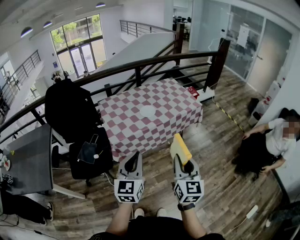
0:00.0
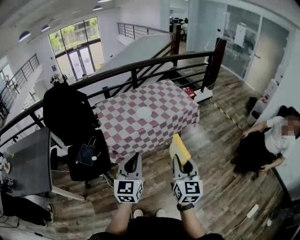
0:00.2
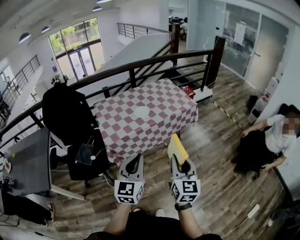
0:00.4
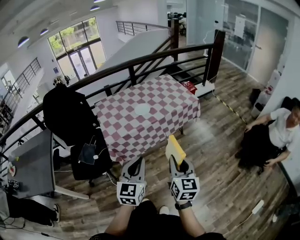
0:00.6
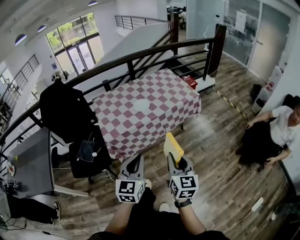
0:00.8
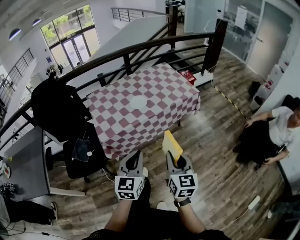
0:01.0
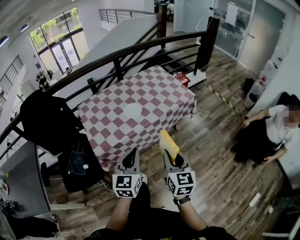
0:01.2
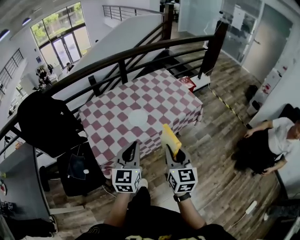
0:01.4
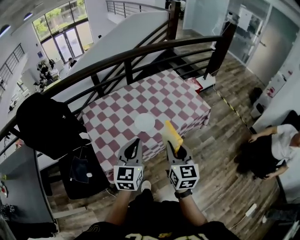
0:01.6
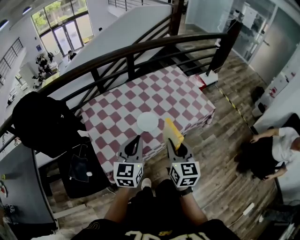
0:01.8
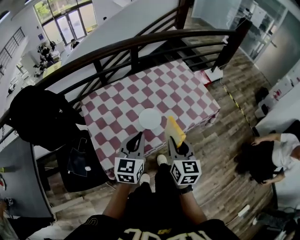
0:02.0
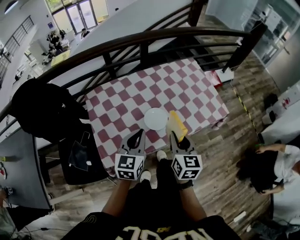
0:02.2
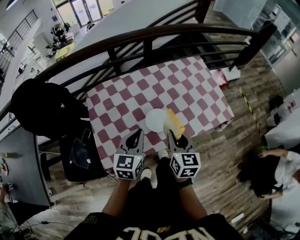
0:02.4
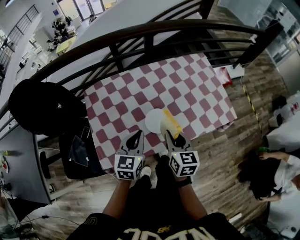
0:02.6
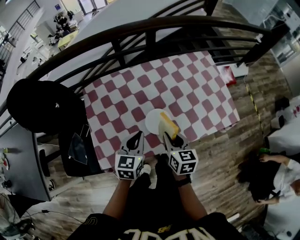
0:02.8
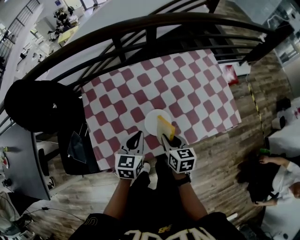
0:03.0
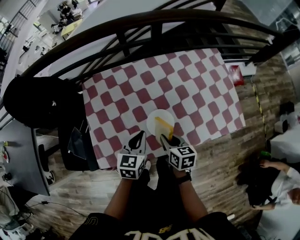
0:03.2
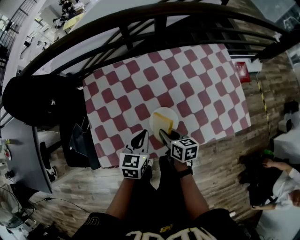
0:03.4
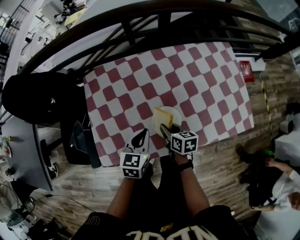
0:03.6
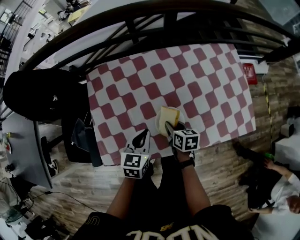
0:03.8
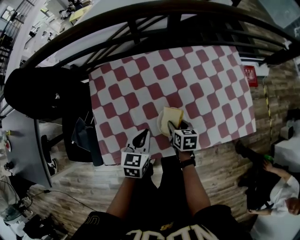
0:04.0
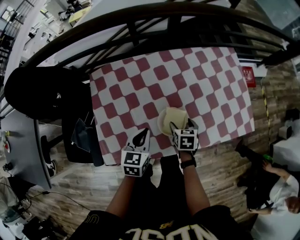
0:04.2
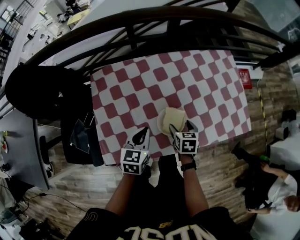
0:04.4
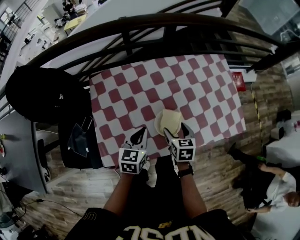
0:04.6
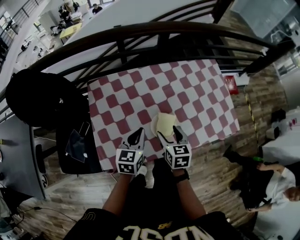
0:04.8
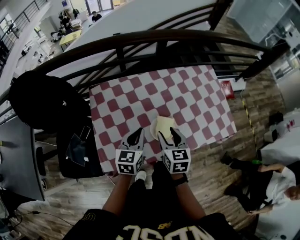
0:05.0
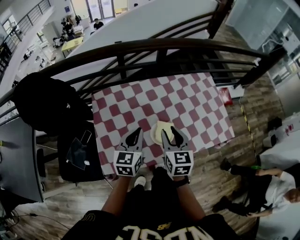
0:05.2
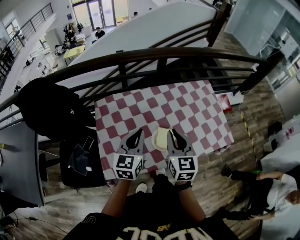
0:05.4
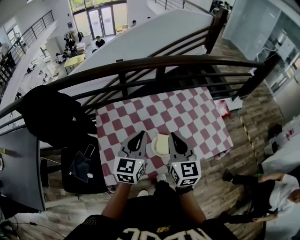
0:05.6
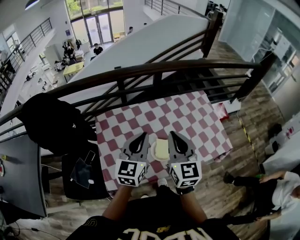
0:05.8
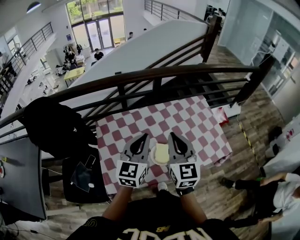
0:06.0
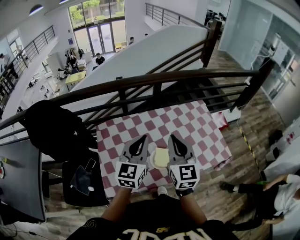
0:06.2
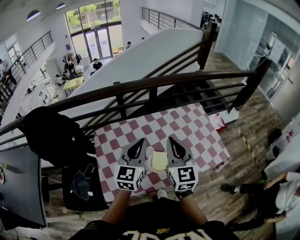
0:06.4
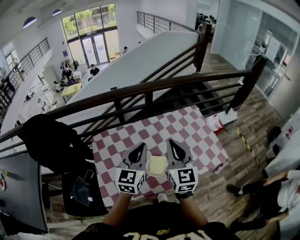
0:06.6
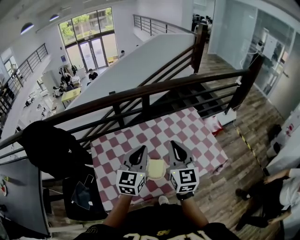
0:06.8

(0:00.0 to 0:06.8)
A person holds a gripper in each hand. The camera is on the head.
0:00.0 - 0:01.4: The two grippers go some 25 cm forward.
0:01.4 - 0:02.8: The two grippers go some 30 cm forward and downward. The right gripper turns by approximately 30 degrees; the left gripper swivels roughly 20 degrees.
0:02.8 - 0:04.0: The right gripper shifts about 15 cm downward and forward, and rotates roughly 20 degrees; the left gripper heads downward, covering some 5 cm.
0:04.0 - 0:05.4: The left gripper moves upward, roughly 20 cm, and changes its angle by some 20 degrees. Meanwhile the right gripper goes some 30 cm upward, points its fingers some 30 degrees further upward, and opens, then closes once more.
0:05.4 - 0:06.8: The left gripper is displaced to the right and upward by roughly 10 cm. Meanwhile the right gripper goes some 10 cm upward and to the right.

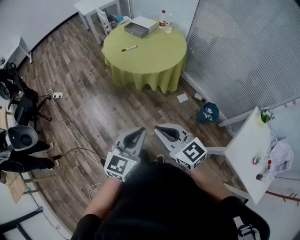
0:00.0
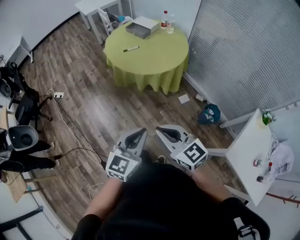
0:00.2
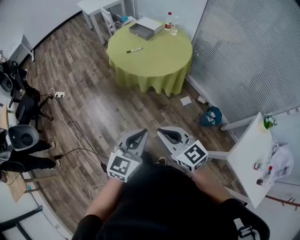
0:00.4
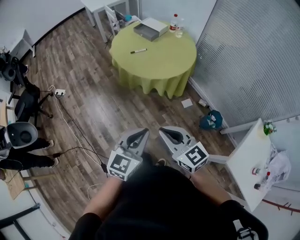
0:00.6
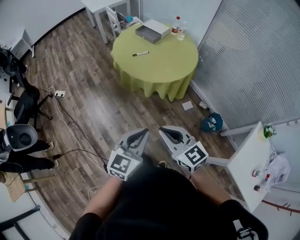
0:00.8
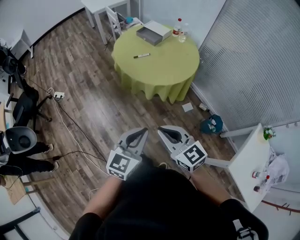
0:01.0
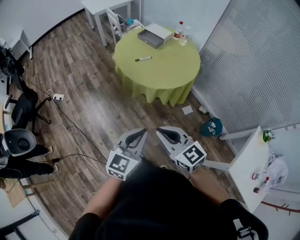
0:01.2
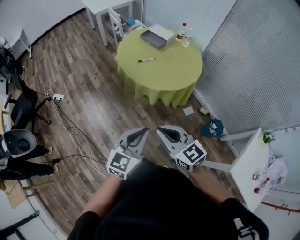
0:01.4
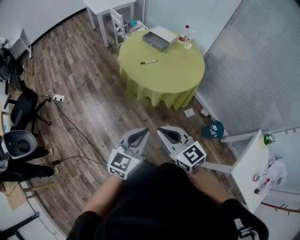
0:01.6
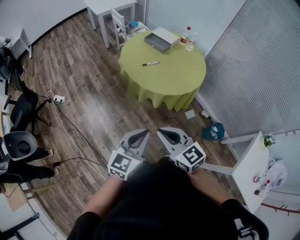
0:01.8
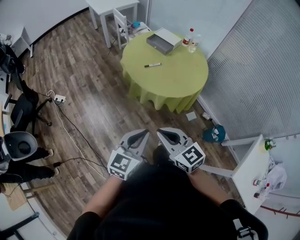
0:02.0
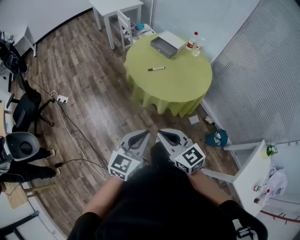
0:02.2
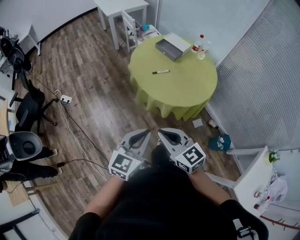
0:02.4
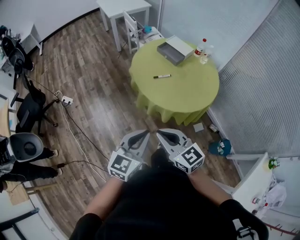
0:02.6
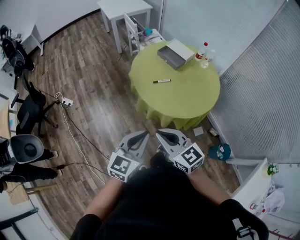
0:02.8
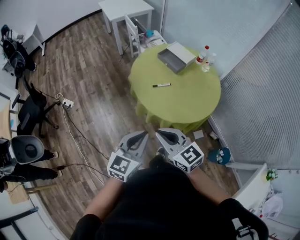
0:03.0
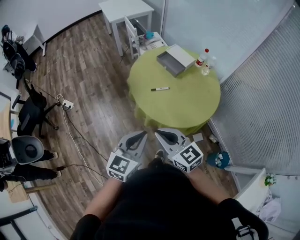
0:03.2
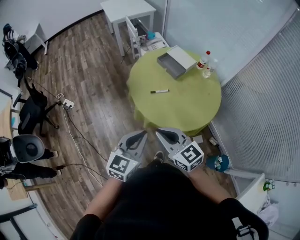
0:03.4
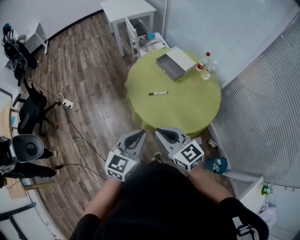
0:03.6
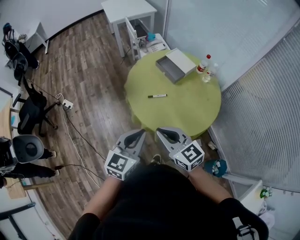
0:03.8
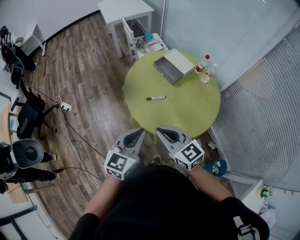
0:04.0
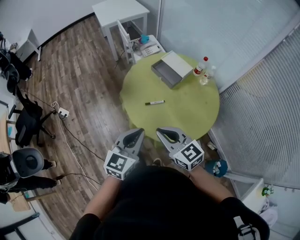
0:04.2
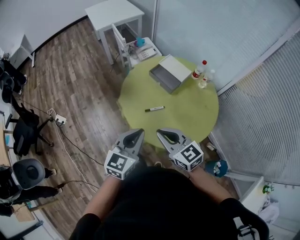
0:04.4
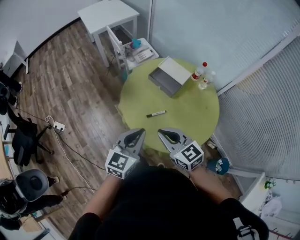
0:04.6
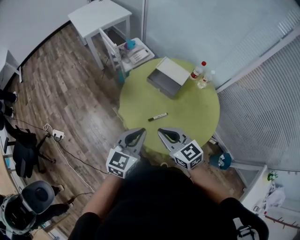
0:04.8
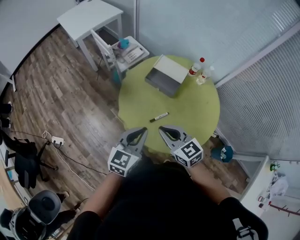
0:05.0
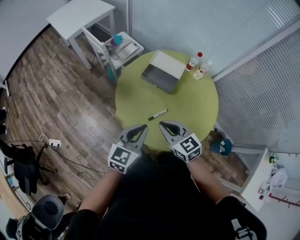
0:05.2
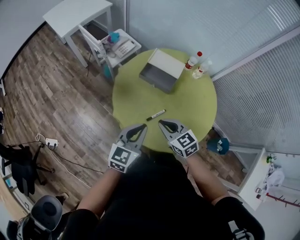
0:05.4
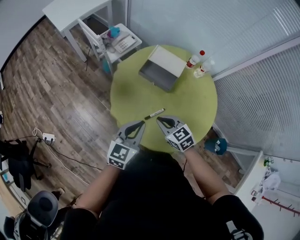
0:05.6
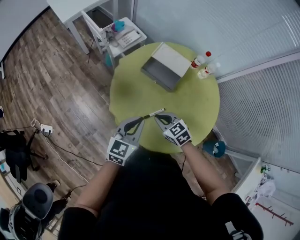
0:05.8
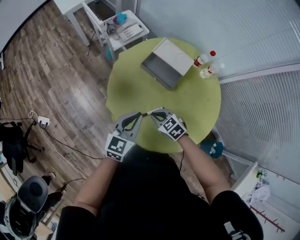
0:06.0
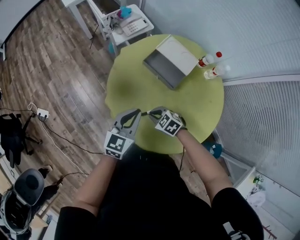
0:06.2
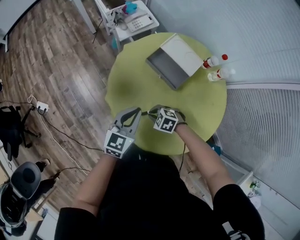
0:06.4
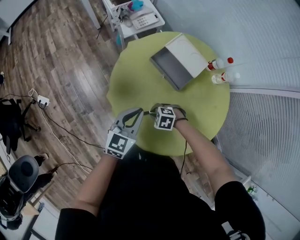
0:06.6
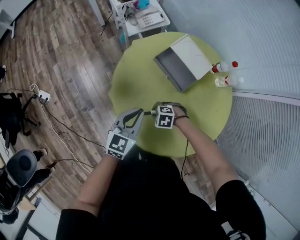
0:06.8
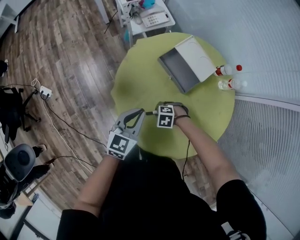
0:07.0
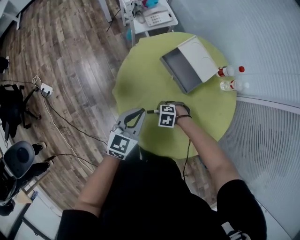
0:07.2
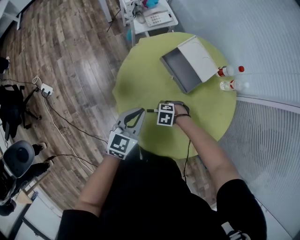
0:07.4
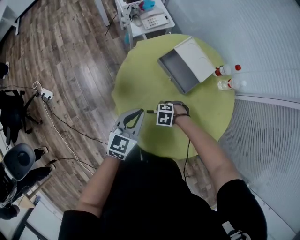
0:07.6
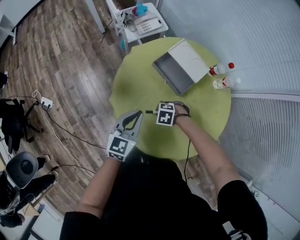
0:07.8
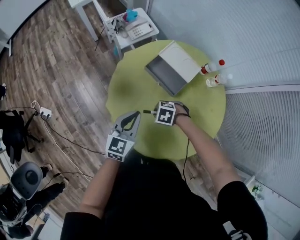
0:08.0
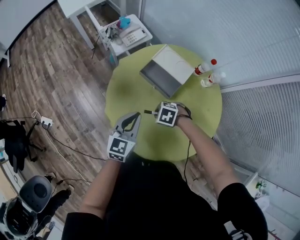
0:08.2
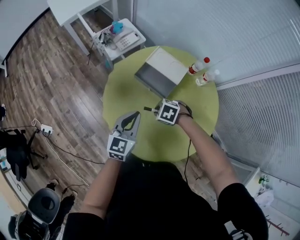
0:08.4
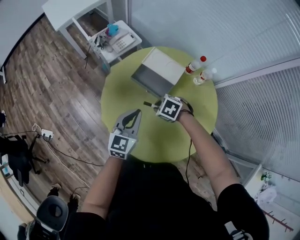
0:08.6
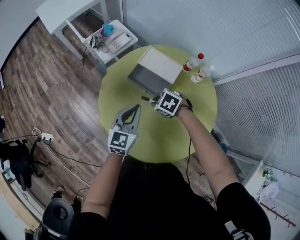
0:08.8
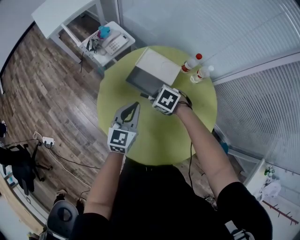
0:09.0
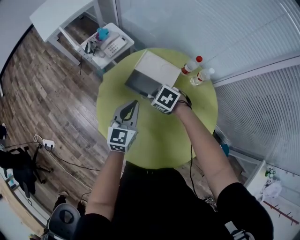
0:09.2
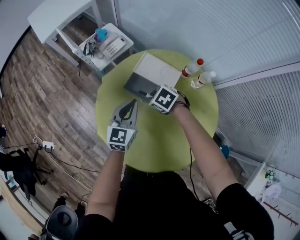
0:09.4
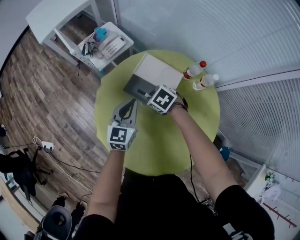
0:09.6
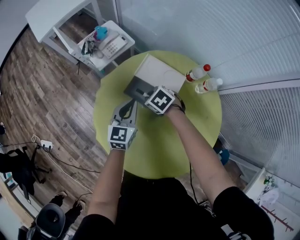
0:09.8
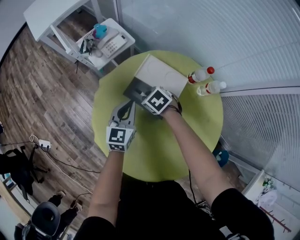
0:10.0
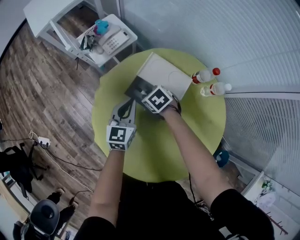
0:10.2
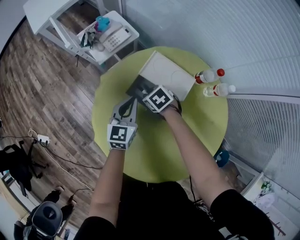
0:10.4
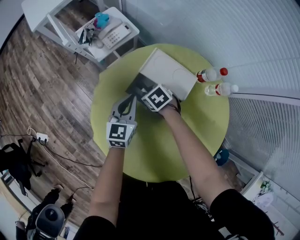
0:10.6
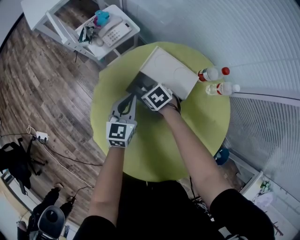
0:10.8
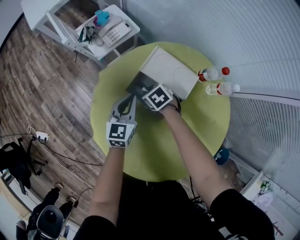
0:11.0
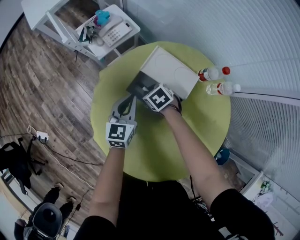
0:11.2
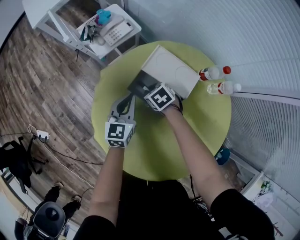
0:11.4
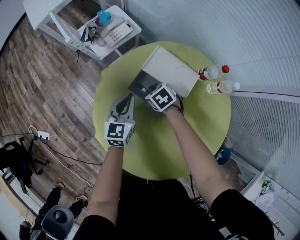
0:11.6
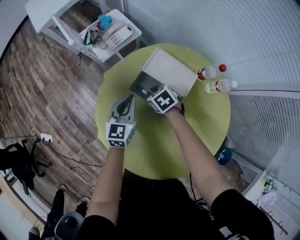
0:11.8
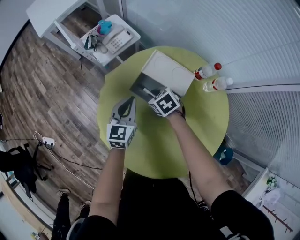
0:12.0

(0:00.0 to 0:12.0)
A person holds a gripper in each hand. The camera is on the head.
0:00.0 - 0:01.6: Both grippers travel together forward and to the left, roughly 20 cm.
0:01.6 - 0:03.0: The grippers both shift forward by about 20 cm.
0:03.0 - 0:04.4: The two grippers go approximately 20 cm forward.
0:04.4 - 0:06.0: The left gripper moves forward and downward, approximately 25 cm, while the right gripper is displaced downward and forward by about 35 cm, and tips its fingers downward by approximately 30 degrees.
0:06.0 - 0:07.6: The right gripper shifts some 15 cm downward, and changes its angle by some 50 degrees. The left gripper goes some 5 cm downward.
0:07.6 - 0:09.0: The left gripper moves some 15 cm, while the right gripper changes place by roughly 25 cm, and swivels roughly 40 degrees.
0:09.0 - 0:10.4: The left gripper is displaced forward and downward by about 15 cm; the right gripper moves downward and forward, about 20 cm.
0:10.4 - 0:12.0: There are only small adjustments of the grippers.

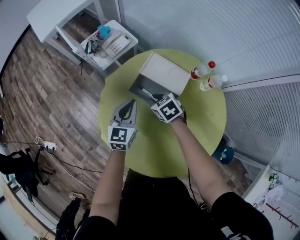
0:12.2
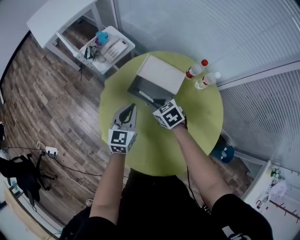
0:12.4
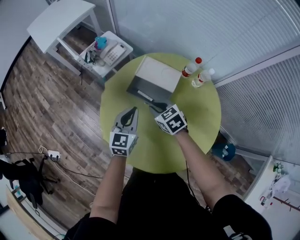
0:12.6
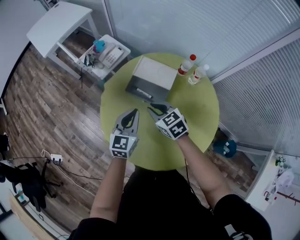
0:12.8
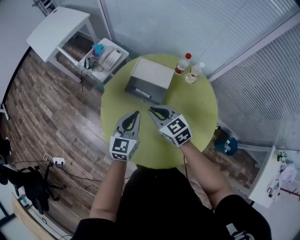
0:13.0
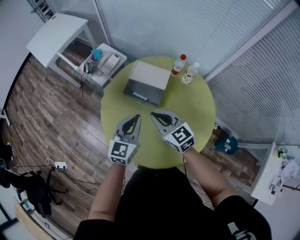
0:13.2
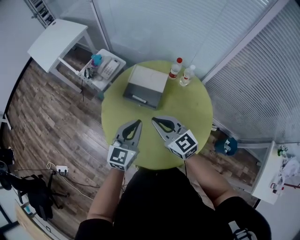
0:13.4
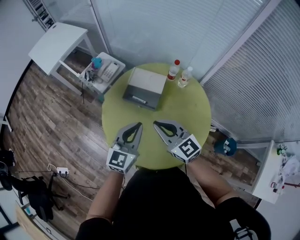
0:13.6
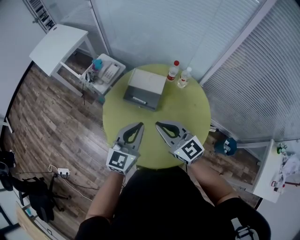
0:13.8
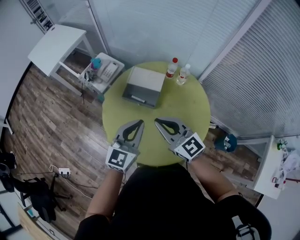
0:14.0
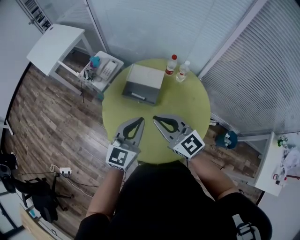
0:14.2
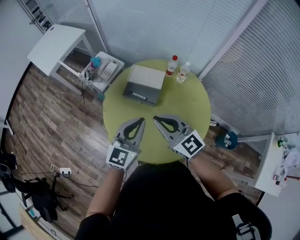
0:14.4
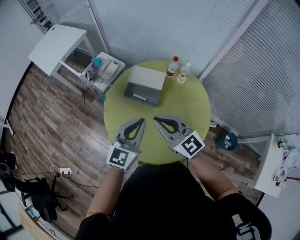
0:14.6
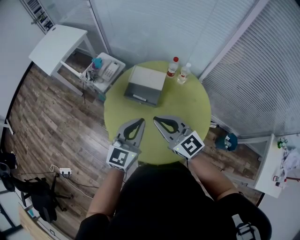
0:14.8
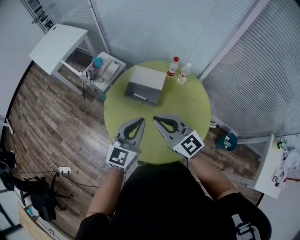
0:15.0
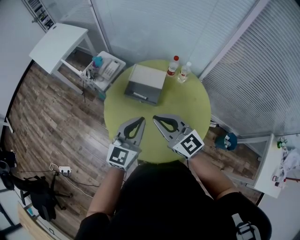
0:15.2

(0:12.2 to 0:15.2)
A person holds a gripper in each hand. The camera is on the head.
0:12.2 - 0:13.8: Both grippers move upward and backward, approximately 30 cm. The right gripper tips its fingers upward by approximately 50 degrees; the left gripper turns by approximately 30 degrees.
0:13.8 - 0:15.2: The grippers stay close to where they were, moving slightly.

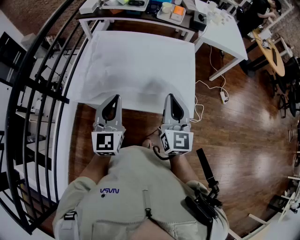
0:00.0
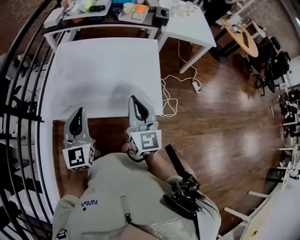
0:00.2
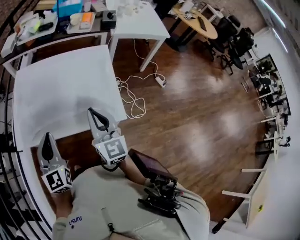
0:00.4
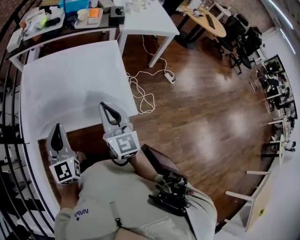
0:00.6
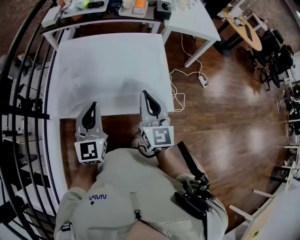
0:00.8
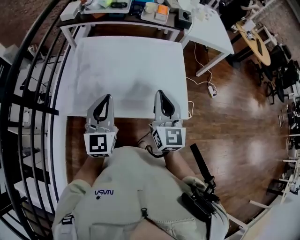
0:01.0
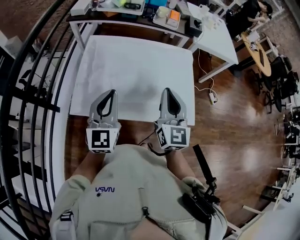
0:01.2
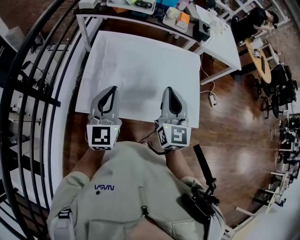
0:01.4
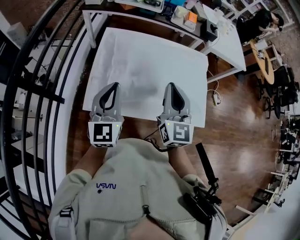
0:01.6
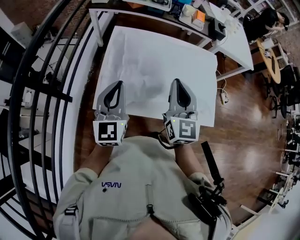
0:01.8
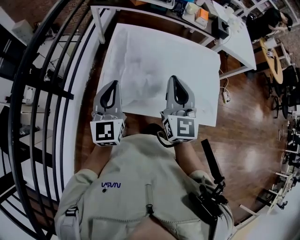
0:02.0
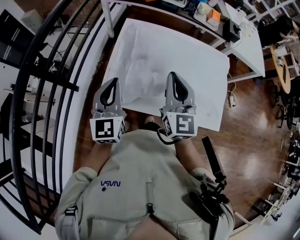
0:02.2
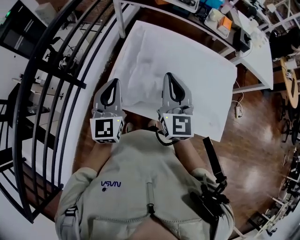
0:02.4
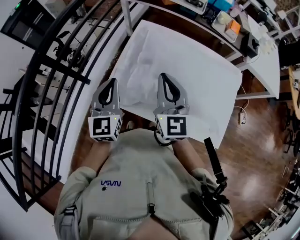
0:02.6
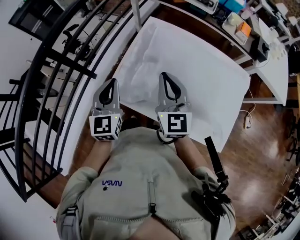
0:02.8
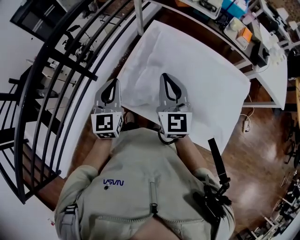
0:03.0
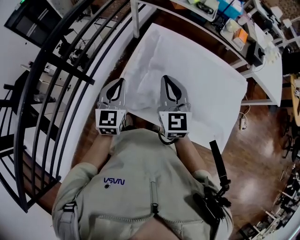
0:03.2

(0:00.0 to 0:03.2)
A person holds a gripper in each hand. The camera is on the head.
0:00.0 - 0:01.6: The grippers both shift to the left and forward by about 20 cm.
0:01.6 - 0:03.2: The right gripper changes place by approximately 15 cm, and turns by roughly 30 degrees; the left gripper shifts by some 15 cm, and rotates about 20 degrees.
